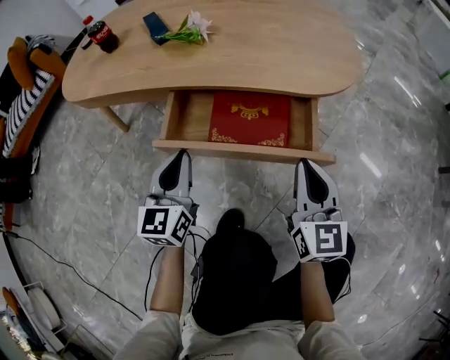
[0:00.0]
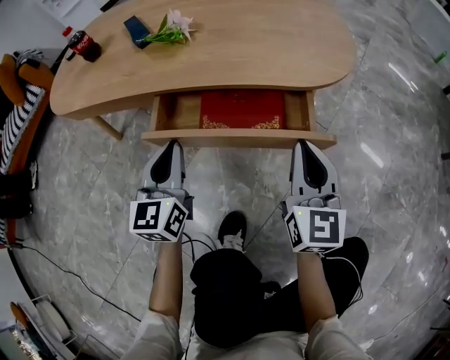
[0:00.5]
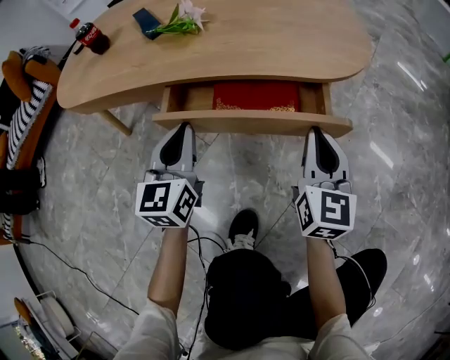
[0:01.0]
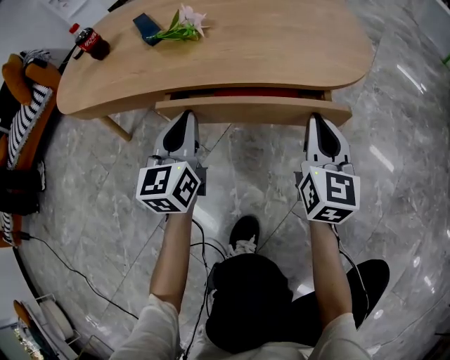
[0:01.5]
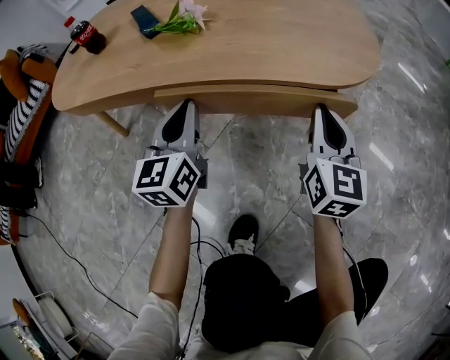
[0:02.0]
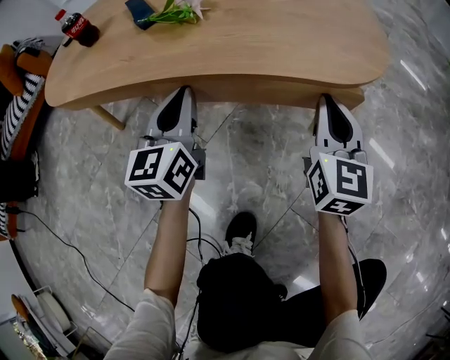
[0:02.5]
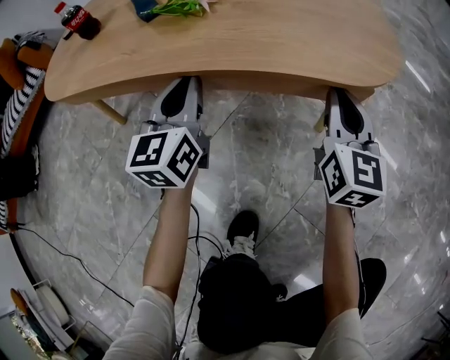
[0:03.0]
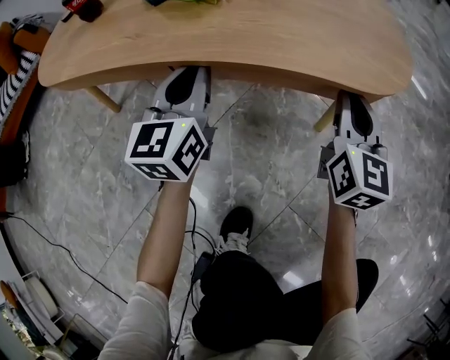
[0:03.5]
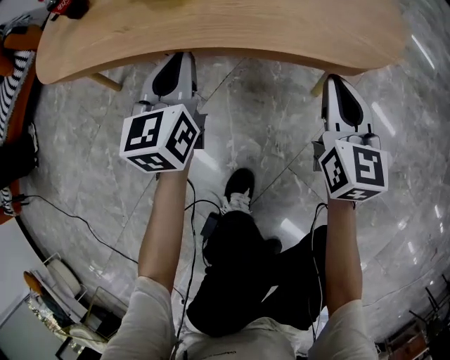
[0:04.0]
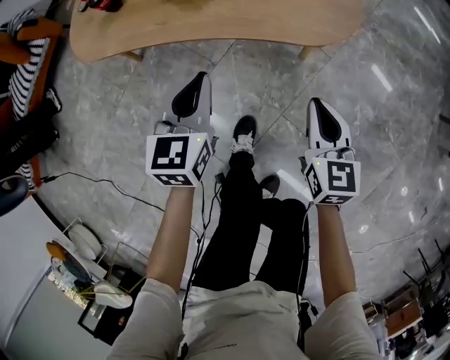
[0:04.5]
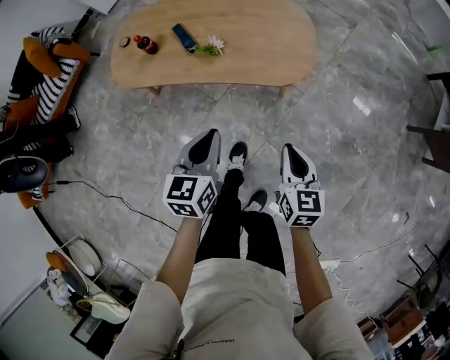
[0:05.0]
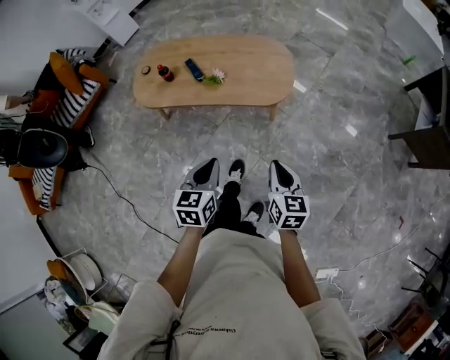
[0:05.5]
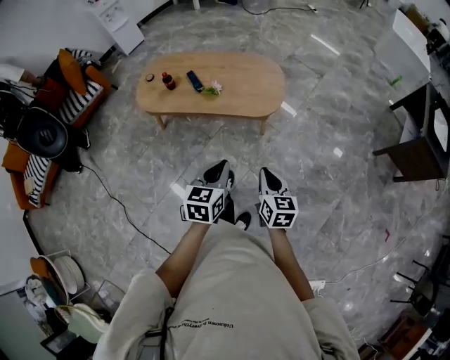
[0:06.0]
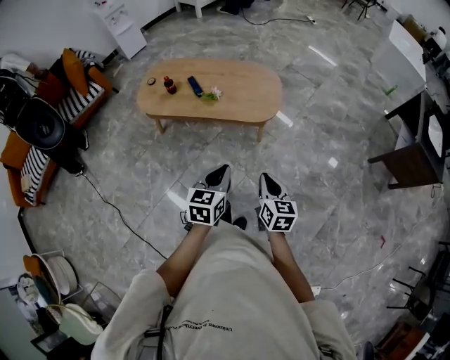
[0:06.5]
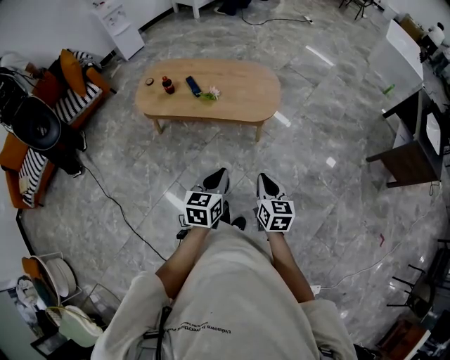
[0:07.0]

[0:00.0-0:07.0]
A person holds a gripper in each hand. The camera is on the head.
0:00.0 to 0:02.0: The grippers both shift forward by about 10 cm.
0:02.0 to 0:03.5: The grippers move only a little.
0:03.5 to 0:05.0: Both grippers travel together upward and backward, some 40 cm. The right gripper rotates roughly 30 degrees. The left gripper swivels about 30 degrees.
0:05.0 to 0:07.0: The two grippers go about 25 cm backward and upward.

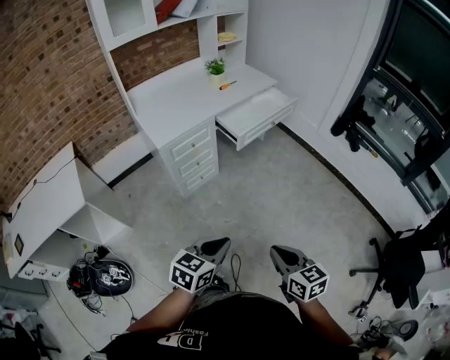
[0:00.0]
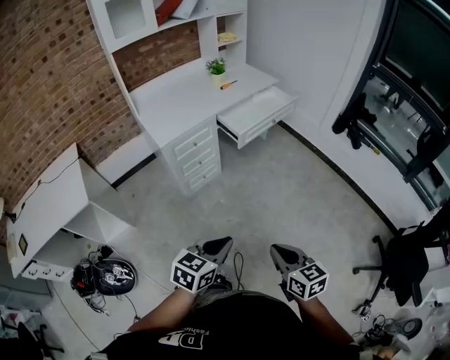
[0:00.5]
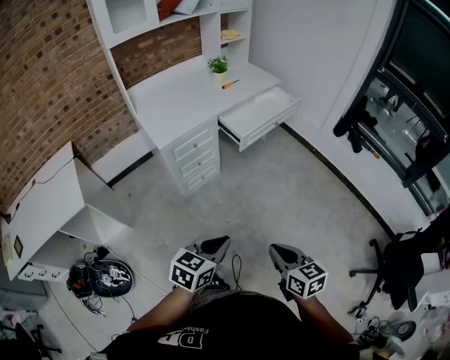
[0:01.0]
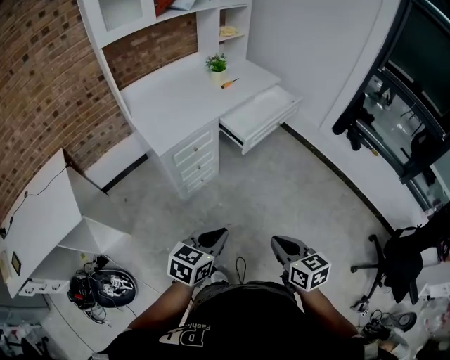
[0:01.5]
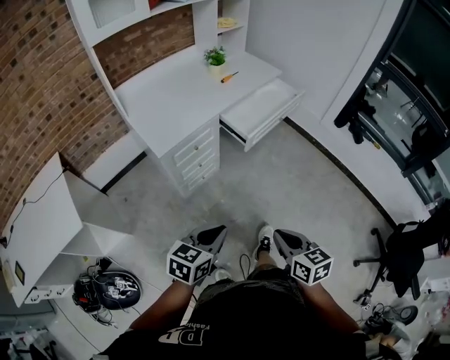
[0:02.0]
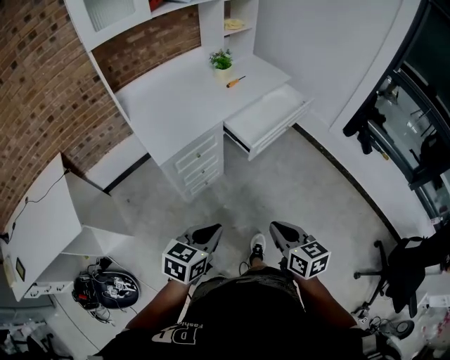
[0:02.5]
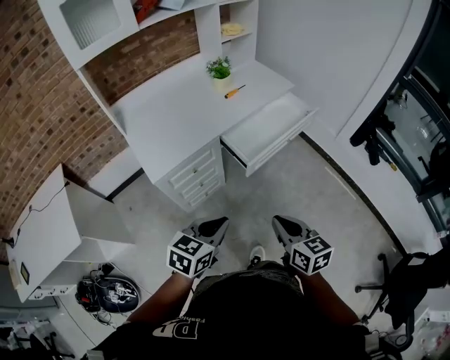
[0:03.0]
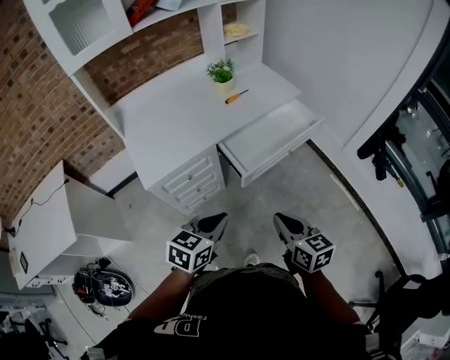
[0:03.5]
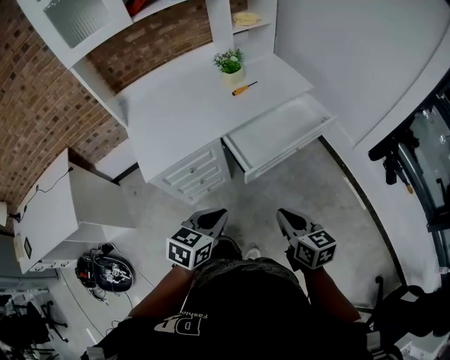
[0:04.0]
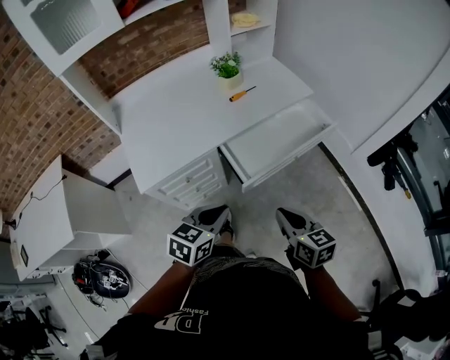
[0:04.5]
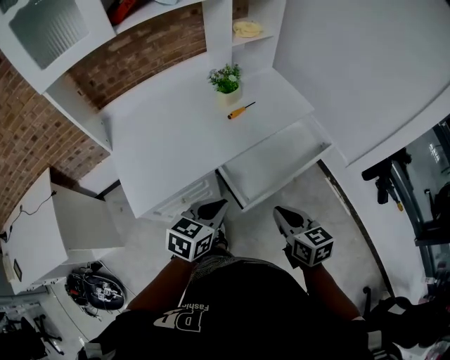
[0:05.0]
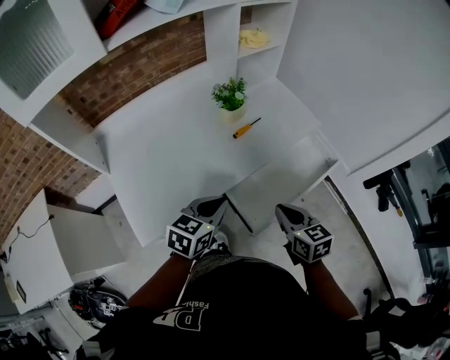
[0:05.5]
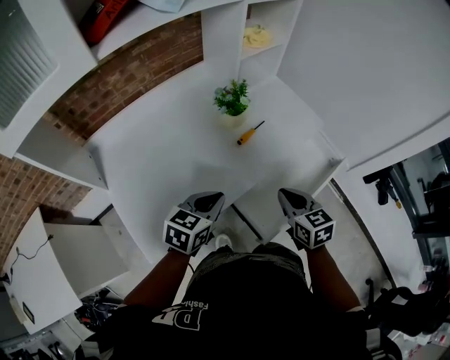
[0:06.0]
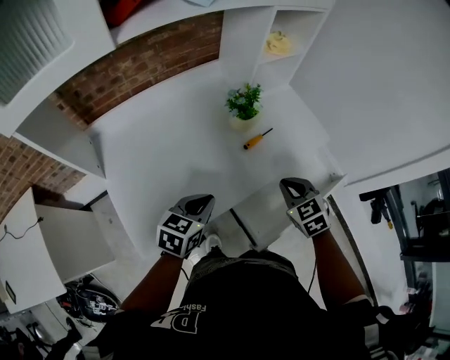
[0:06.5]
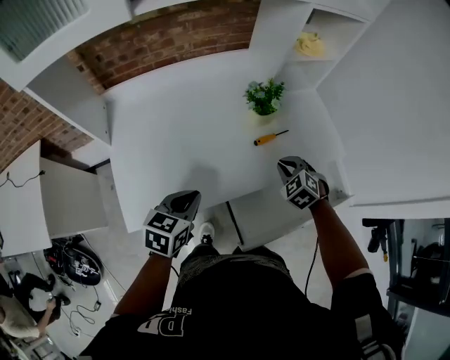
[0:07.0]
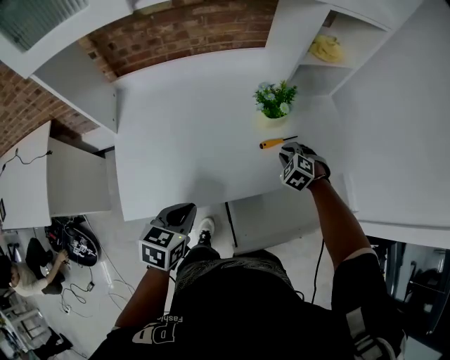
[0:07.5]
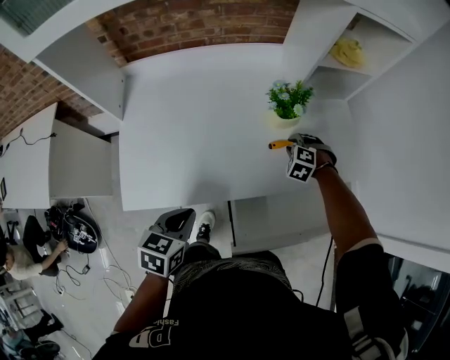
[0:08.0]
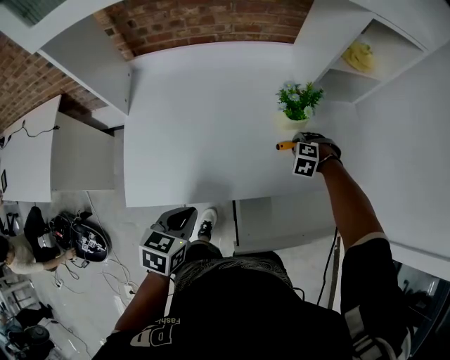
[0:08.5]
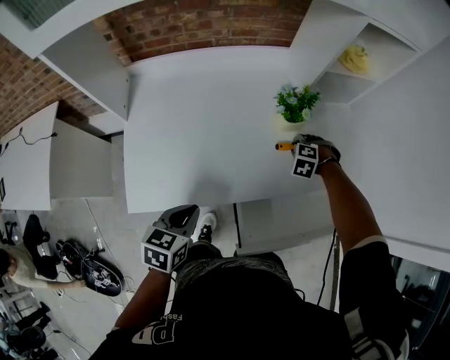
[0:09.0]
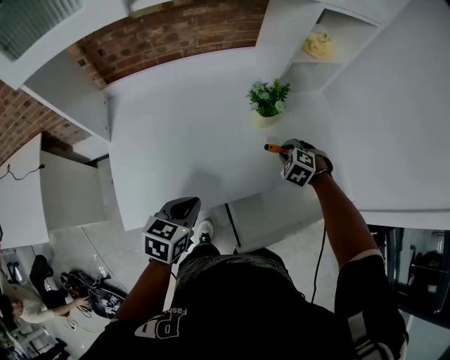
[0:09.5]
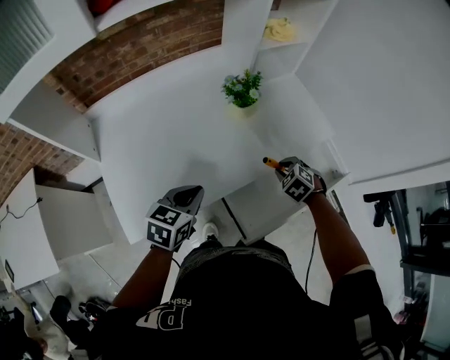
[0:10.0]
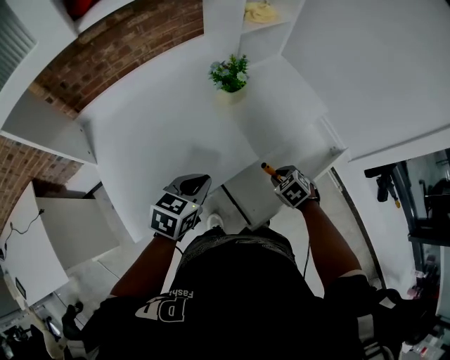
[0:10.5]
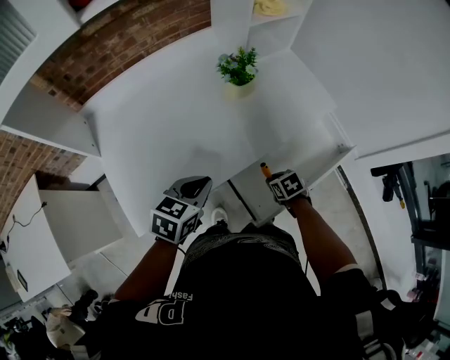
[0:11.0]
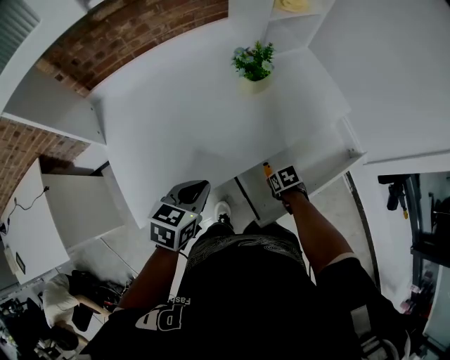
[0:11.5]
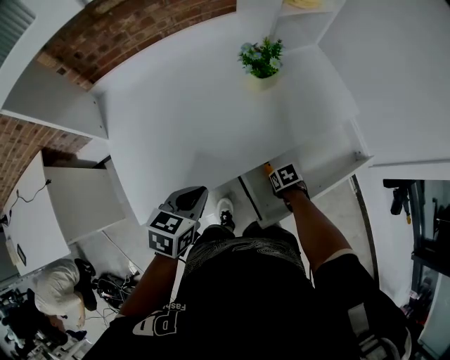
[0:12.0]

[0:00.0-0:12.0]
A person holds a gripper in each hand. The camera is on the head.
0:00.0 to 0:02.0: Both grippers move forward and to the left, roughly 15 cm.
0:02.0 to 0:04.0: The left gripper travels forward and to the right by about 30 cm, while the right gripper is displaced forward by roughly 30 cm.
0:04.0 to 0:06.0: The grippers both shift forward by approximately 35 cm.
0:06.0 to 0:08.0: The right gripper goes approximately 30 cm forward and downward, and twists some 80 degrees counterclockwise, seen from behind. The left gripper goes about 10 cm backward and downward, and changes its angle by about 40 degrees.
0:08.0 to 0:10.0: The left gripper shifts by roughly 5 cm, and swivels about 30 degrees. Meanwhile the right gripper moves approximately 15 cm, and rotates about 40 degrees.
0:10.0 to 0:12.0: The left gripper moves approximately 5 cm. The right gripper goes approximately 20 cm downward, and rolls clockwise, seen from behind, by some 40 degrees.

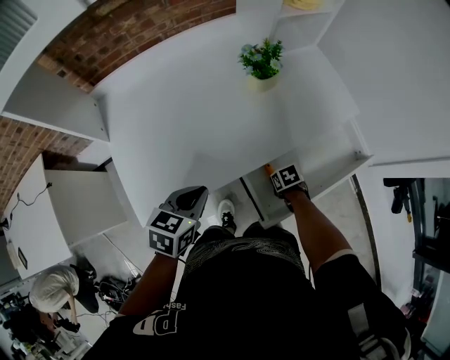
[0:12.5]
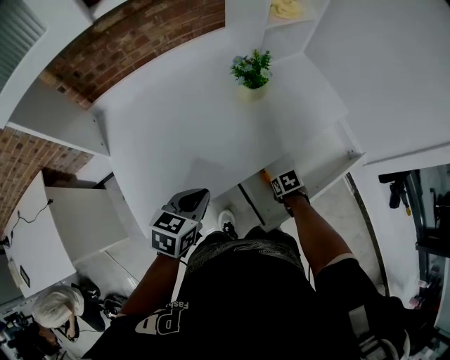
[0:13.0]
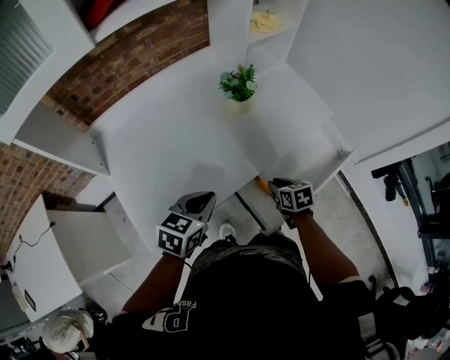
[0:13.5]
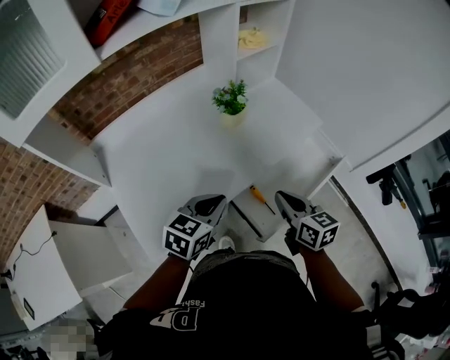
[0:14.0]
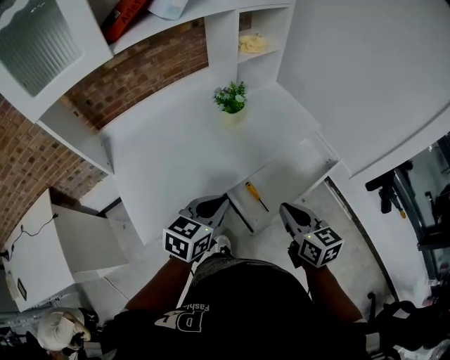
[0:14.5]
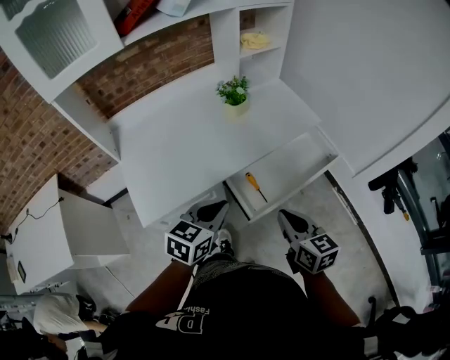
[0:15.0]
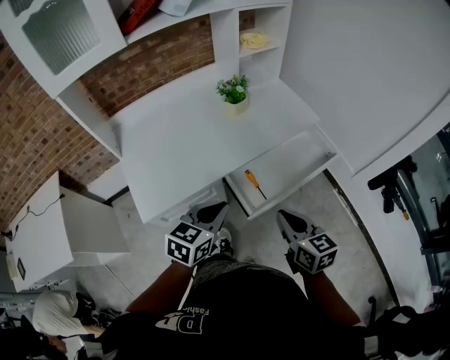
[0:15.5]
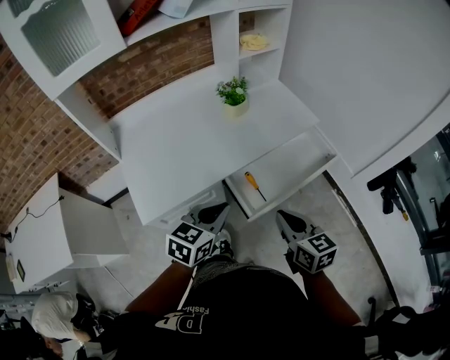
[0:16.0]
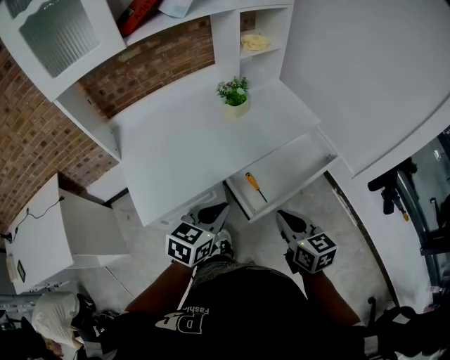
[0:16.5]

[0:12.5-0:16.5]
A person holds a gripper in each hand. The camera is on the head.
0:12.5 to 0:14.5: The left gripper ends up some 15 cm from where it was, and changes its angle by approximately 20 degrees; the right gripper heads upward, covering about 35 cm, and tilts its fingers approximately 50 degrees upward.
0:14.5 to 0:16.5: The grippers both shift backward by roughly 10 cm.

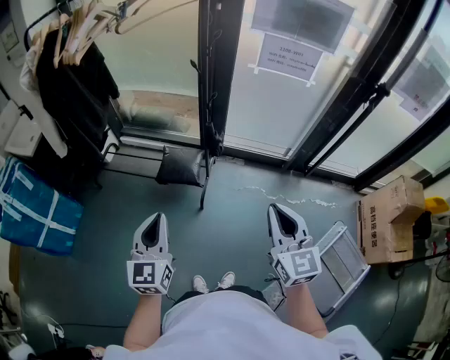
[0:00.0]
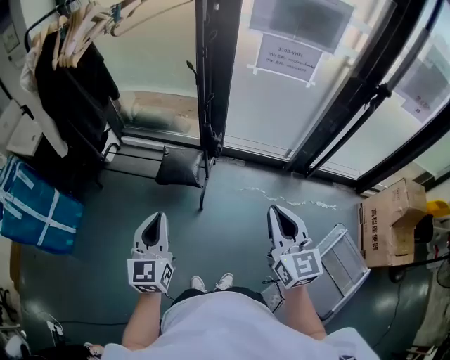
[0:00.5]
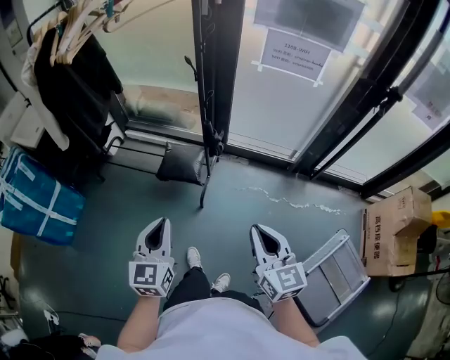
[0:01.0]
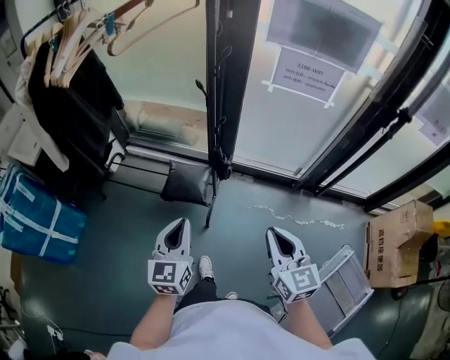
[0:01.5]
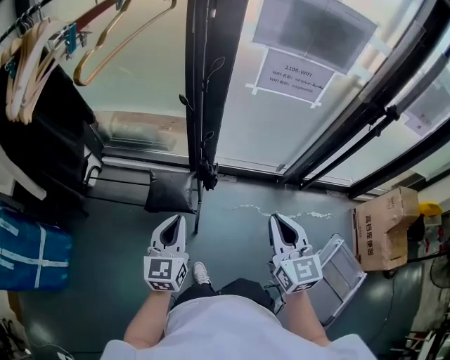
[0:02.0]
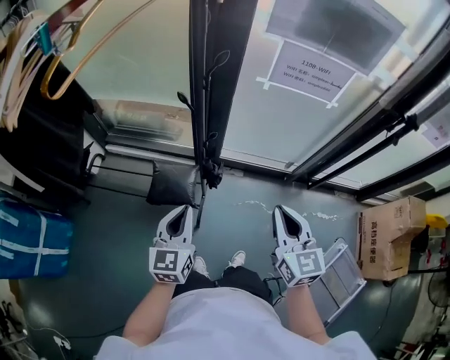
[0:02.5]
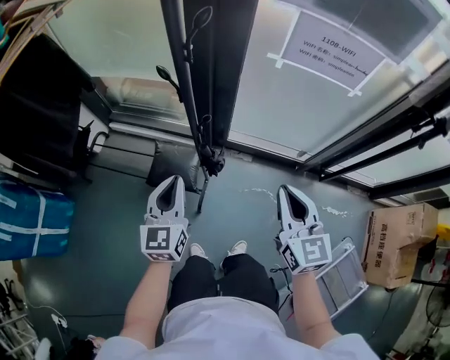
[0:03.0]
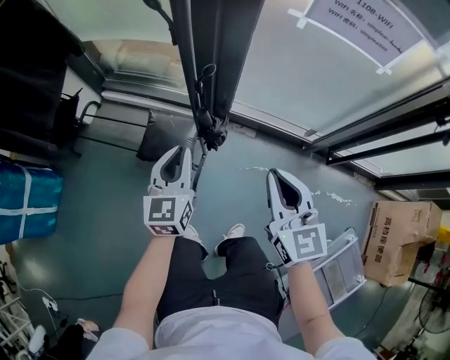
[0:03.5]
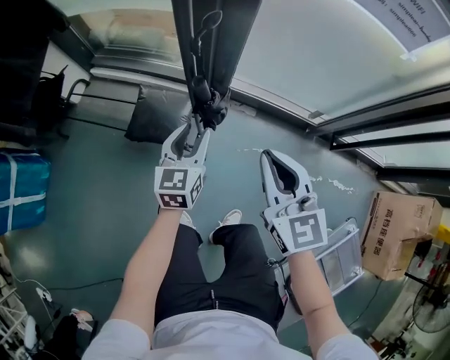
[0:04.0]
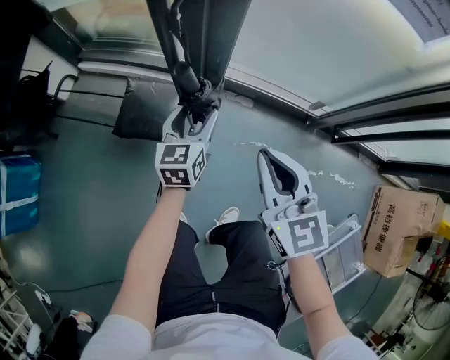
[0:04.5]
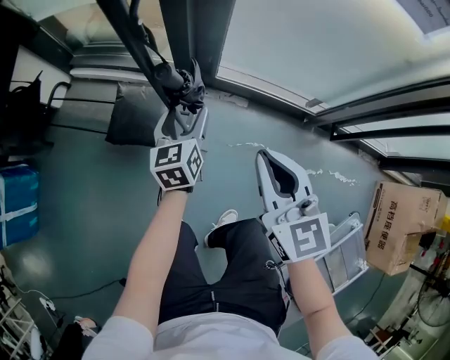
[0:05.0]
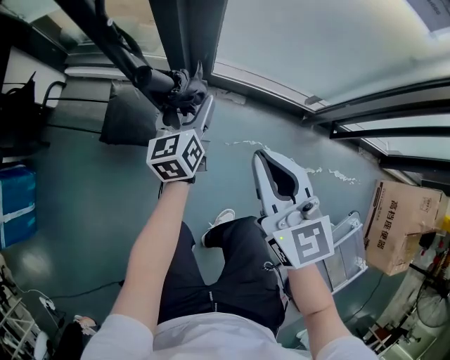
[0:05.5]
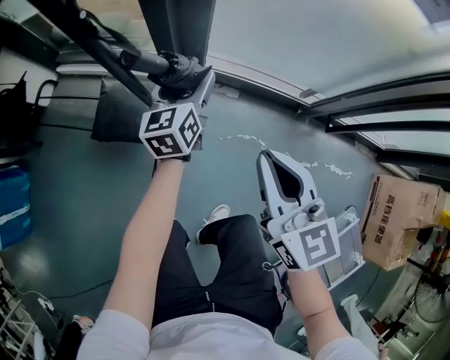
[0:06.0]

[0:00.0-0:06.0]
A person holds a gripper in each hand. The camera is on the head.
0:00.0 to 0:02.0: The two grippers go approximately 20 cm forward.
0:02.0 to 0:04.0: The two grippers go approximately 30 cm downward and forward. The left gripper opens up.
0:04.0 to 0:06.0: The right gripper shifts about 10 cm downward and to the right, while the left gripper is displaced forward, to the right and downward by about 20 cm, and opens its fingers.
